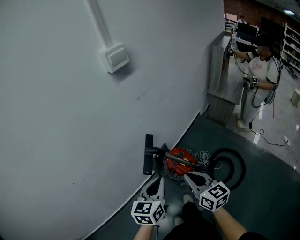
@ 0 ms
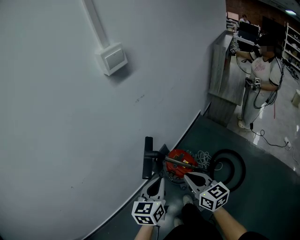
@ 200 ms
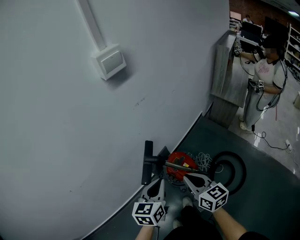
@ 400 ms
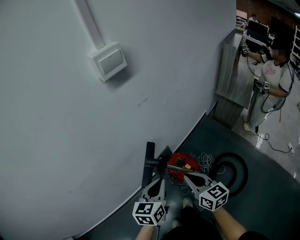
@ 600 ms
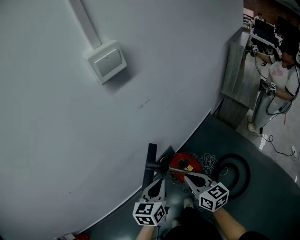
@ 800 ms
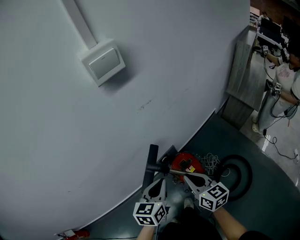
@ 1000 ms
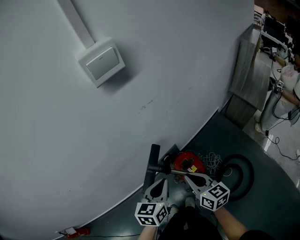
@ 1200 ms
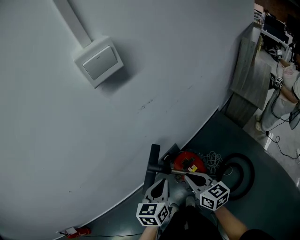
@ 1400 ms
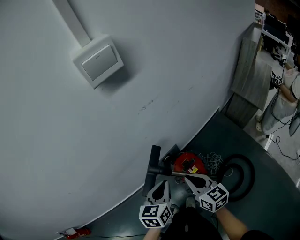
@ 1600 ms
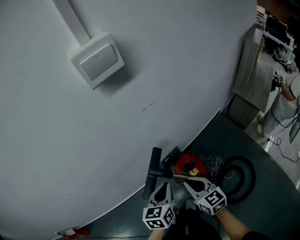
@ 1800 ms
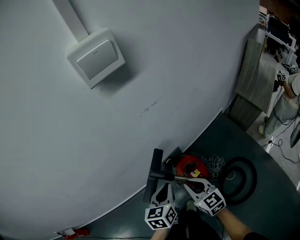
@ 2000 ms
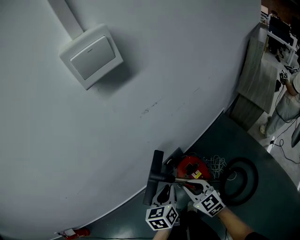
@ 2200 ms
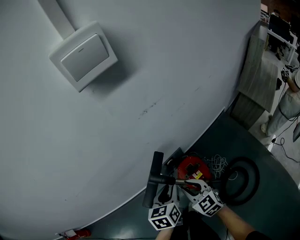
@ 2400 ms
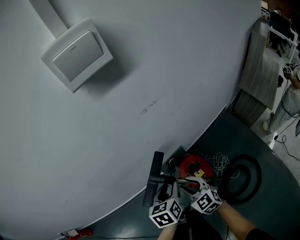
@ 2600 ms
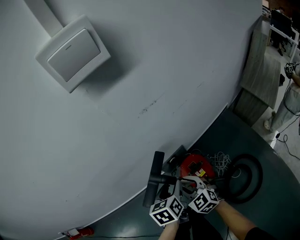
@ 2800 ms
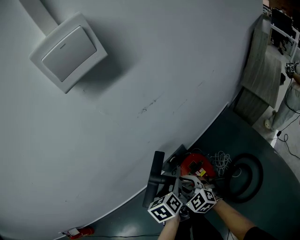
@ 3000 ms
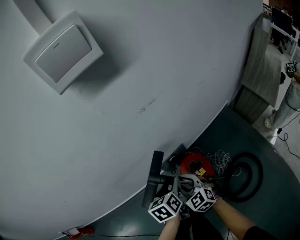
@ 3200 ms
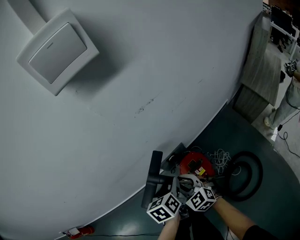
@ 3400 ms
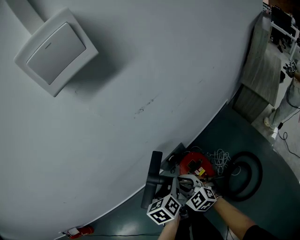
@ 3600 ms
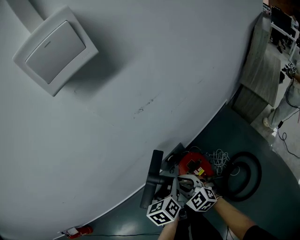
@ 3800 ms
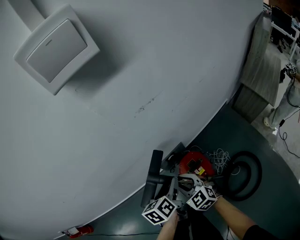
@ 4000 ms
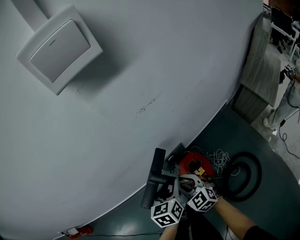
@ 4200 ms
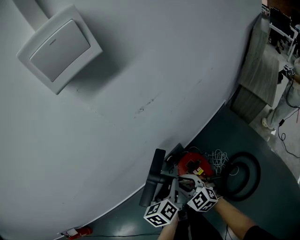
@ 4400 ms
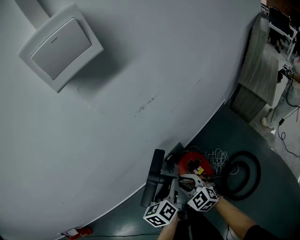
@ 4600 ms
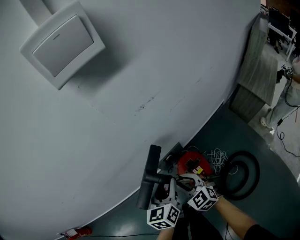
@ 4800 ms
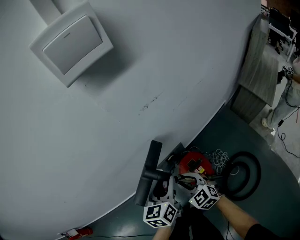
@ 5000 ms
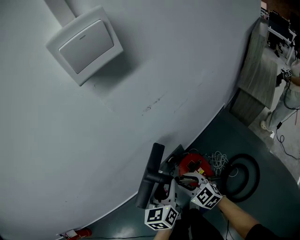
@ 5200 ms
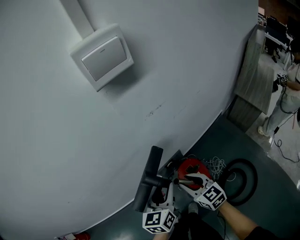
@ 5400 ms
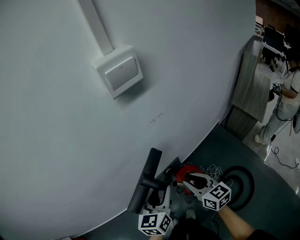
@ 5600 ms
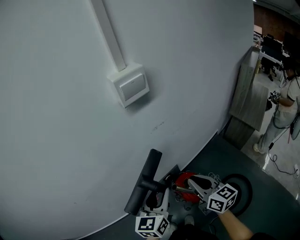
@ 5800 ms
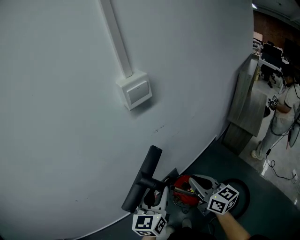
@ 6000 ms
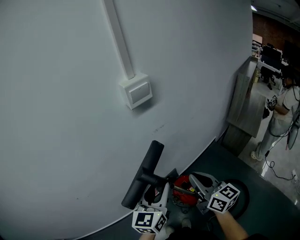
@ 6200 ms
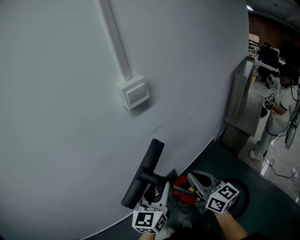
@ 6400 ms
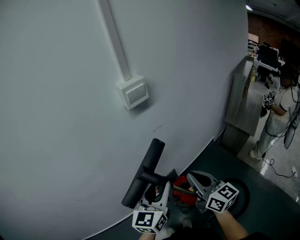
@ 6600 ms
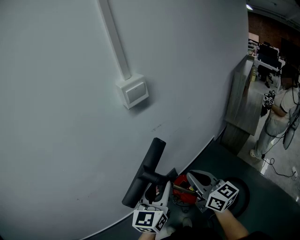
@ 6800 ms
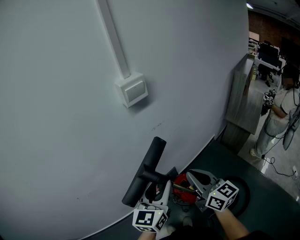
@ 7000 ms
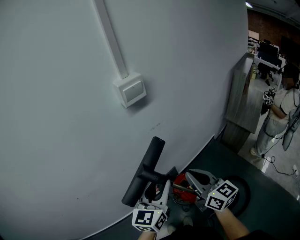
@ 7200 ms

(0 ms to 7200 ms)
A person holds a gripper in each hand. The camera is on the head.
0 ms - 1400 ms: The two grippers go roughly 15 cm forward and downward.
1400 ms - 2800 ms: The right gripper goes approximately 15 cm downward and to the left, rotates roughly 40 degrees, and opens up. Meanwhile the left gripper moves downward, roughly 10 cm, turns by roughly 30 degrees, and opens up.
2800 ms - 4400 ms: The grippers stay close to where they were, moving slightly.
4400 ms - 5800 ms: Both grippers move upward, approximately 20 cm. The left gripper turns by approximately 30 degrees. Meanwhile the right gripper turns by roughly 40 degrees, and closes its fingers.
5800 ms - 7200 ms: The grippers both shift upward by about 10 cm.

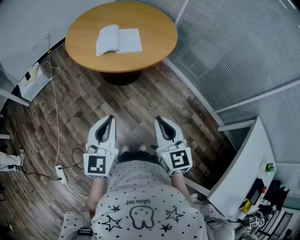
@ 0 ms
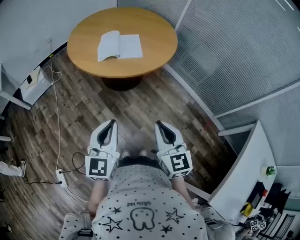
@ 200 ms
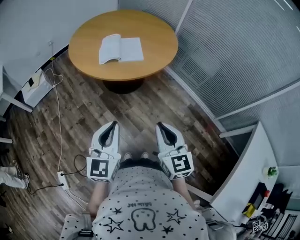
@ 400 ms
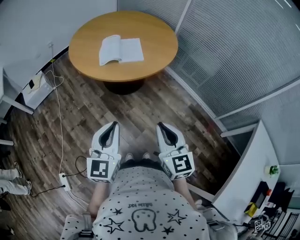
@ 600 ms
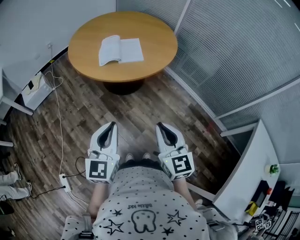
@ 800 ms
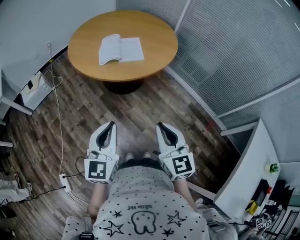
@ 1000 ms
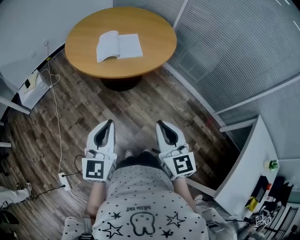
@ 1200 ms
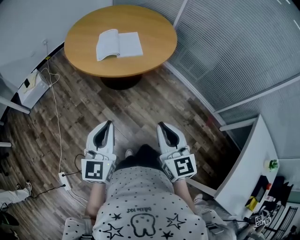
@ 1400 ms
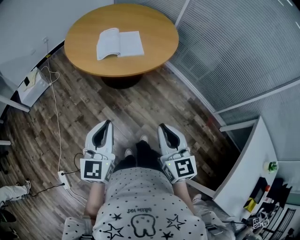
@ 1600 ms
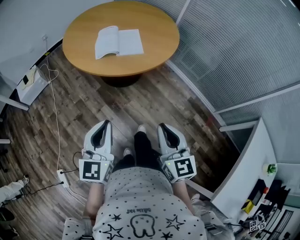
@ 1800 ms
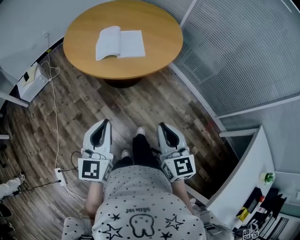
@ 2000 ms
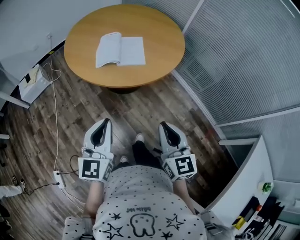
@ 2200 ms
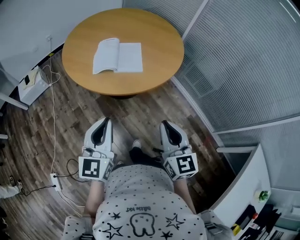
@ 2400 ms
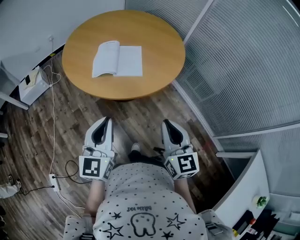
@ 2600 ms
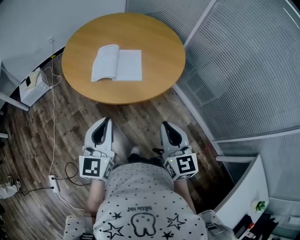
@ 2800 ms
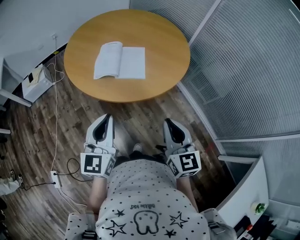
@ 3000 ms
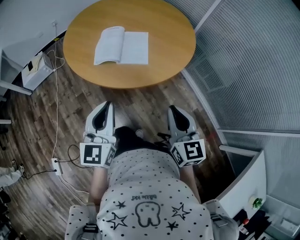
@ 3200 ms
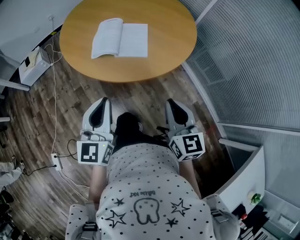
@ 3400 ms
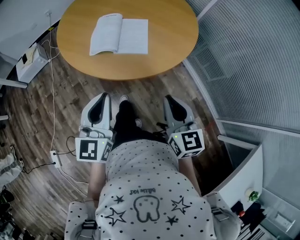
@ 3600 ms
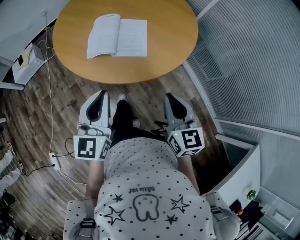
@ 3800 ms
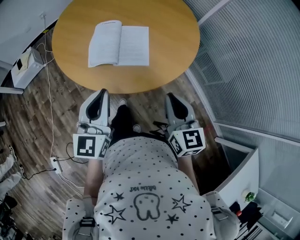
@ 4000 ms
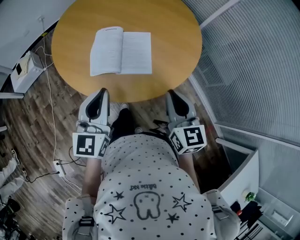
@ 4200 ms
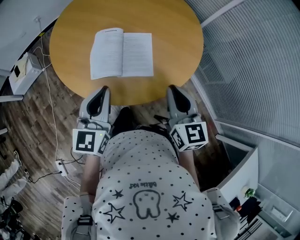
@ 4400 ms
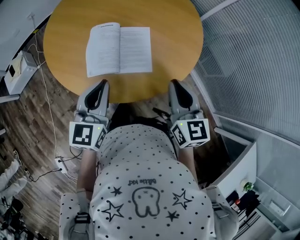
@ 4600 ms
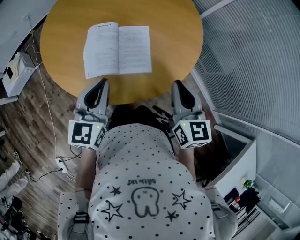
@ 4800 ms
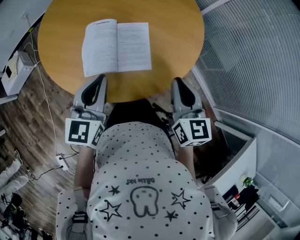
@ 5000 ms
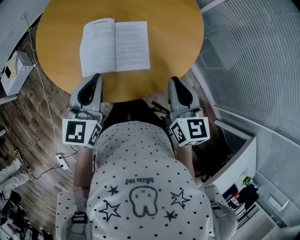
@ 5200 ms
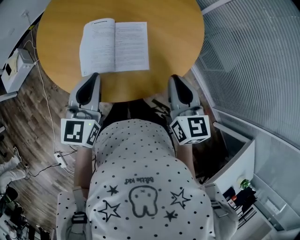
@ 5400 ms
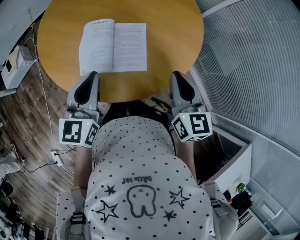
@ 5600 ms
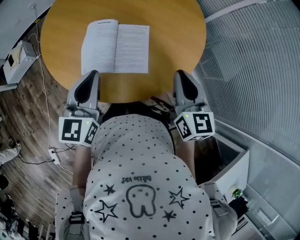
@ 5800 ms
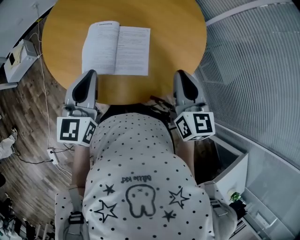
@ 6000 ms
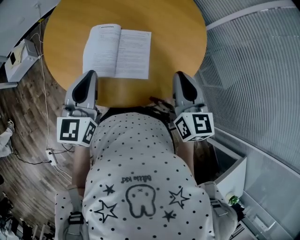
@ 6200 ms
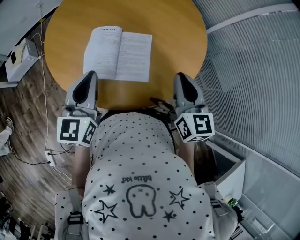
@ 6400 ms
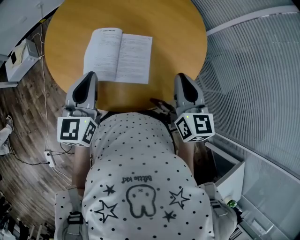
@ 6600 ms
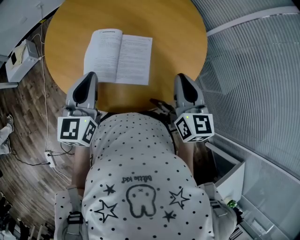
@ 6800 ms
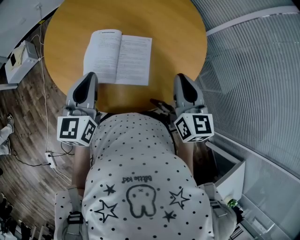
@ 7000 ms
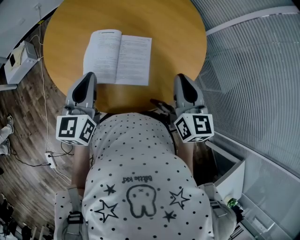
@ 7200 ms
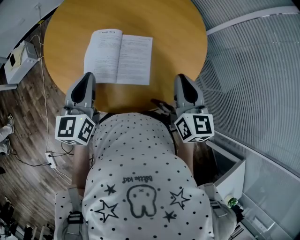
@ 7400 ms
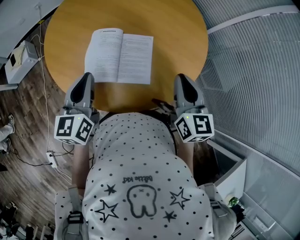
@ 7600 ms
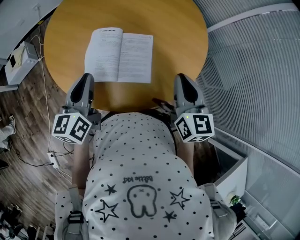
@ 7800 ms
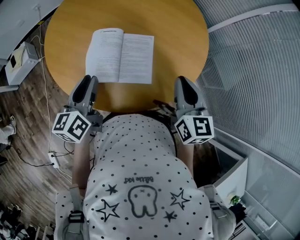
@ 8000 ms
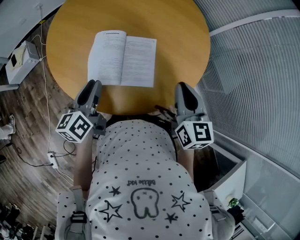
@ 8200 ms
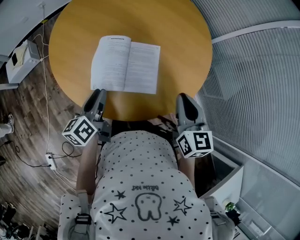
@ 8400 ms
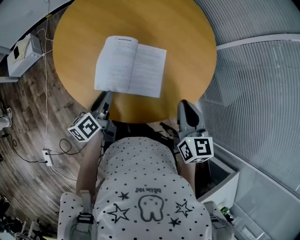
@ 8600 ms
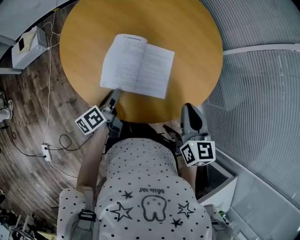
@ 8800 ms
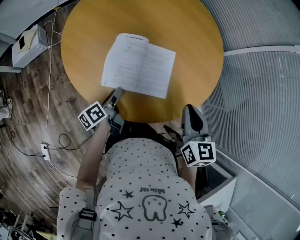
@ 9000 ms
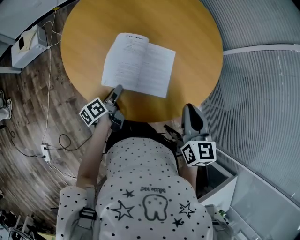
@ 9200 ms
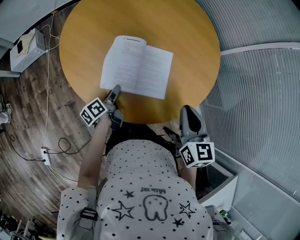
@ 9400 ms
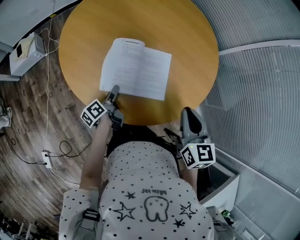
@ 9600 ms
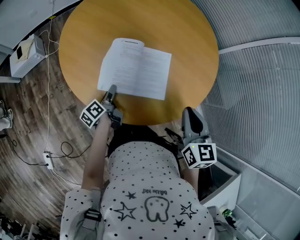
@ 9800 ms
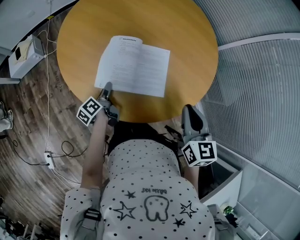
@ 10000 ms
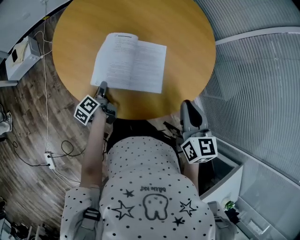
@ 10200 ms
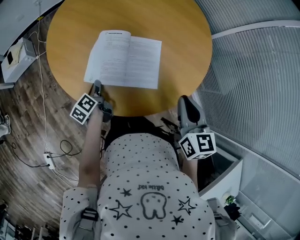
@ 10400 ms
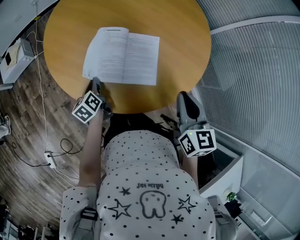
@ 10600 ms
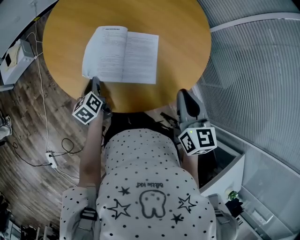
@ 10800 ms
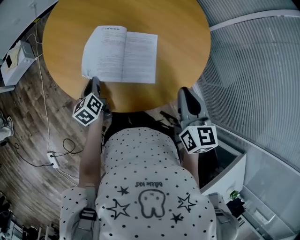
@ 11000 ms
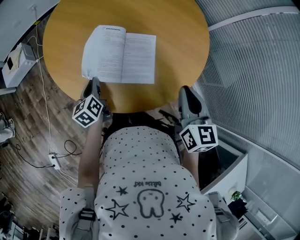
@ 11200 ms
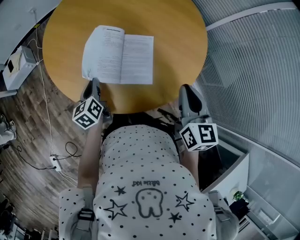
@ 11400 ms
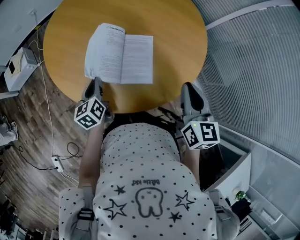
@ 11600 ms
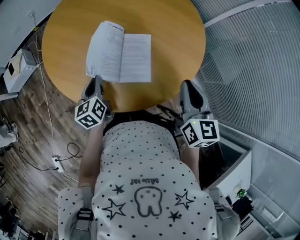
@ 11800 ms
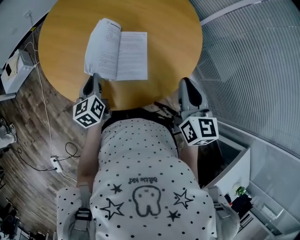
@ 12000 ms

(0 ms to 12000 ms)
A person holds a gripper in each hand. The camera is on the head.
0 ms - 1600 ms: There are only small adjustments of the grippers.
1600 ms - 3000 ms: Both grippers travel together forward and to the right, approximately 25 cm.
3000 ms - 4400 ms: Both grippers move forward, about 25 cm.
4400 ms - 6000 ms: The two grippers go roughly 10 cm forward.
6000 ms - 7600 ms: The grippers stay close to where they were, moving slightly.
7600 ms - 9000 ms: The left gripper heads downward, covering approximately 20 cm, twists some 60 degrees counterclockwise, seen from behind, and opens its fingers. The right gripper ends up approximately 5 cm from where it was.
9000 ms - 10400 ms: The left gripper shifts roughly 5 cm to the left, and closes up.
10400 ms - 12000 ms: The left gripper is displaced upward and to the right by some 15 cm, and swivels some 40 degrees. Meanwhile the right gripper heads to the right, covering approximately 5 cm.

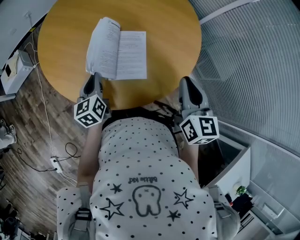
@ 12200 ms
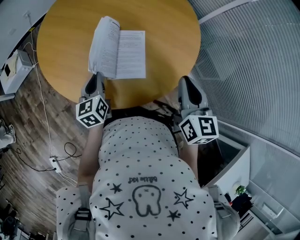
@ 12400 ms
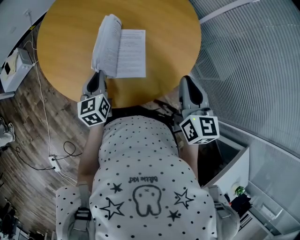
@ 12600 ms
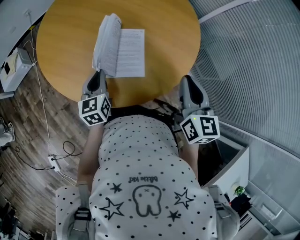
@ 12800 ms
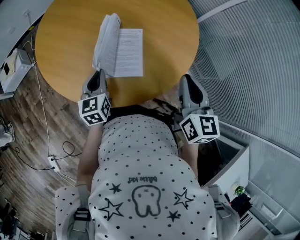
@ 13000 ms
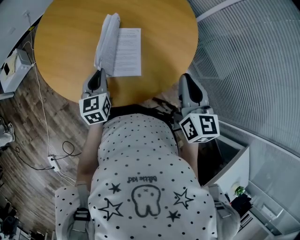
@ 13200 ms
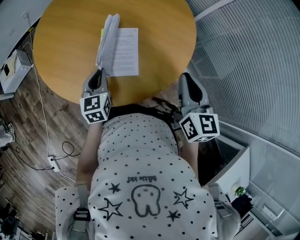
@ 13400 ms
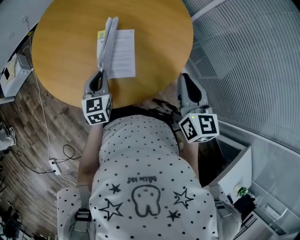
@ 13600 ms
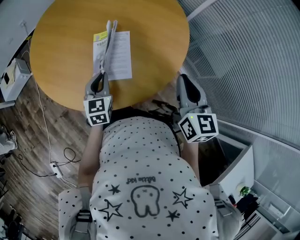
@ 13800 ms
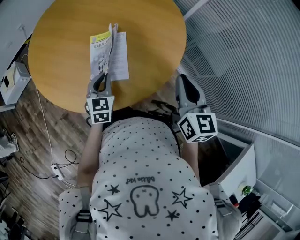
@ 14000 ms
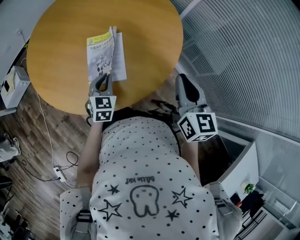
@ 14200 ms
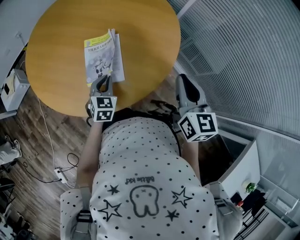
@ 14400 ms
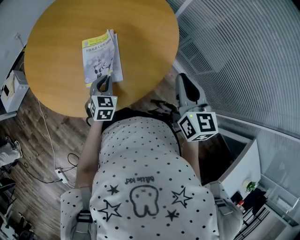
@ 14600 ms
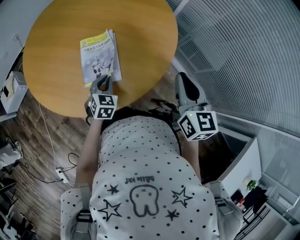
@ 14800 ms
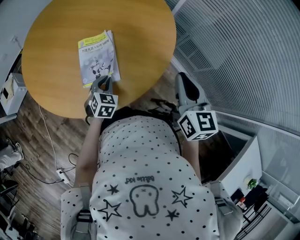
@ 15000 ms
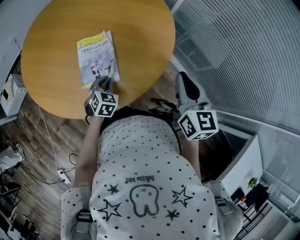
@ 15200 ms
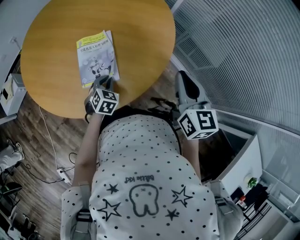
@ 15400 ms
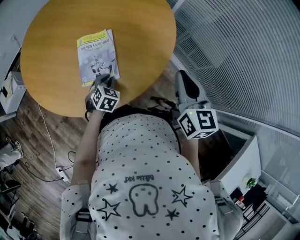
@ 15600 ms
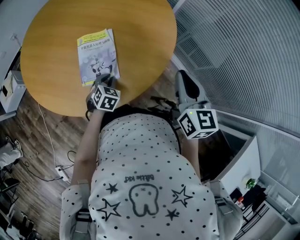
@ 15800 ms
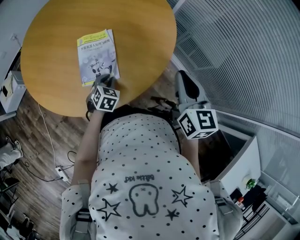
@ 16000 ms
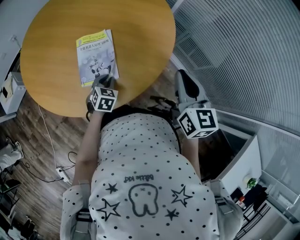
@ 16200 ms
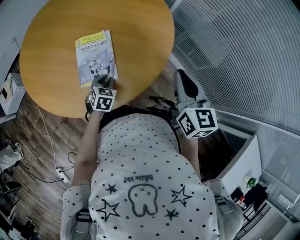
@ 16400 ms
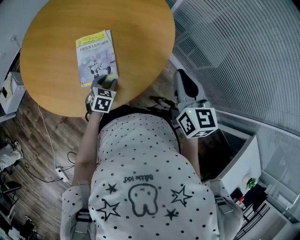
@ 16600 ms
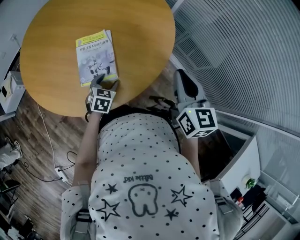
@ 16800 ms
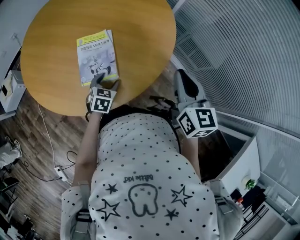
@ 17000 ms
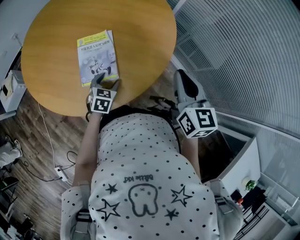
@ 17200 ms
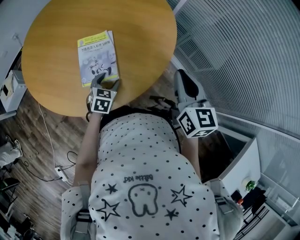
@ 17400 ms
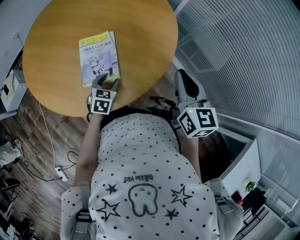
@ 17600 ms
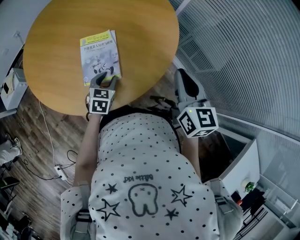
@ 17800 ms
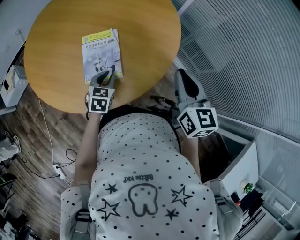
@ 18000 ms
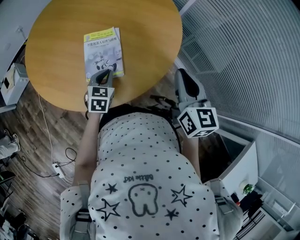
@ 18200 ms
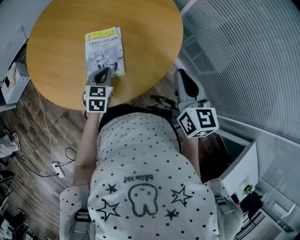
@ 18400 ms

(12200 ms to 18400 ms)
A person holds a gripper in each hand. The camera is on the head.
12200 ms - 13800 ms: The right gripper is displaced to the right by some 5 cm; the left gripper is displaced to the right by about 10 cm, and swivels about 30 degrees.
13800 ms - 15400 ms: The left gripper goes about 15 cm downward and to the right, and turns by roughly 40 degrees. The right gripper moves to the right, some 5 cm.
15400 ms - 16800 ms: The left gripper opens up.
16800 ms - 18400 ms: The left gripper moves upward, approximately 10 cm, and closes up.
